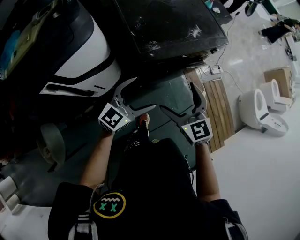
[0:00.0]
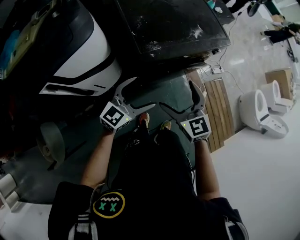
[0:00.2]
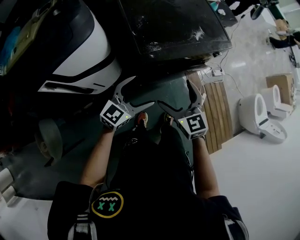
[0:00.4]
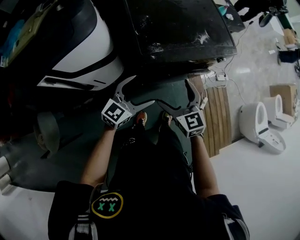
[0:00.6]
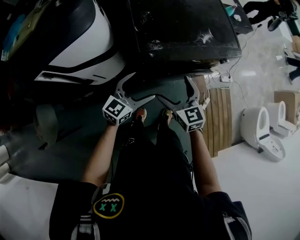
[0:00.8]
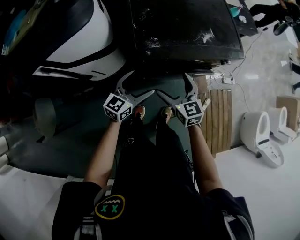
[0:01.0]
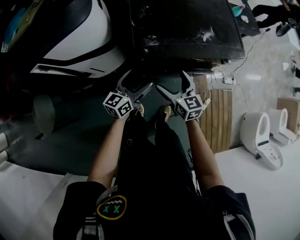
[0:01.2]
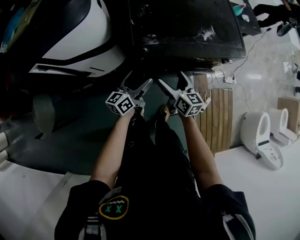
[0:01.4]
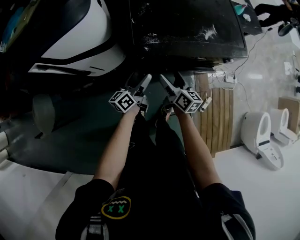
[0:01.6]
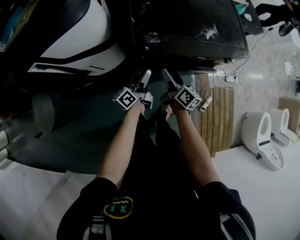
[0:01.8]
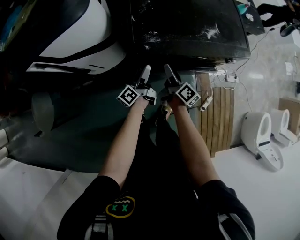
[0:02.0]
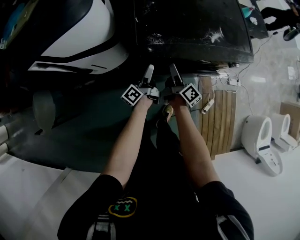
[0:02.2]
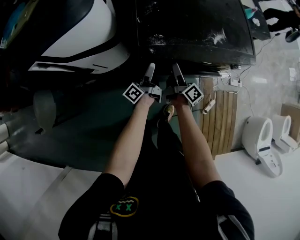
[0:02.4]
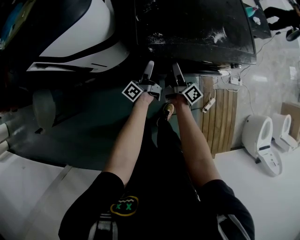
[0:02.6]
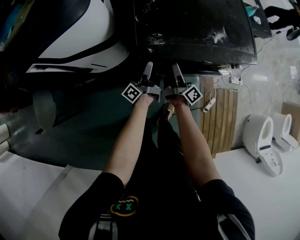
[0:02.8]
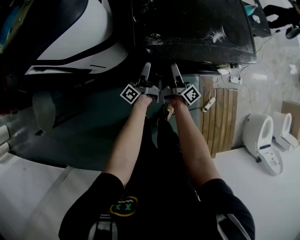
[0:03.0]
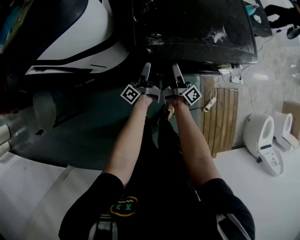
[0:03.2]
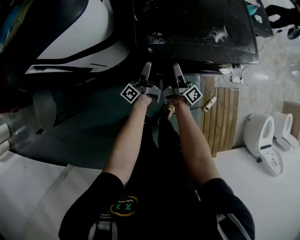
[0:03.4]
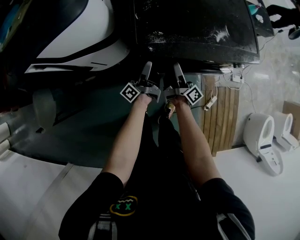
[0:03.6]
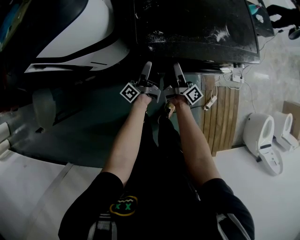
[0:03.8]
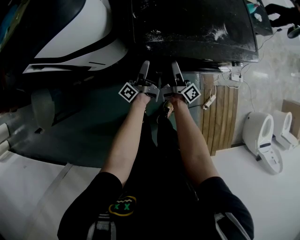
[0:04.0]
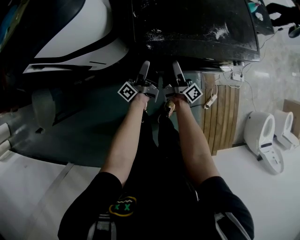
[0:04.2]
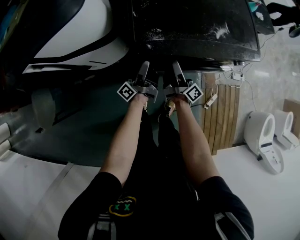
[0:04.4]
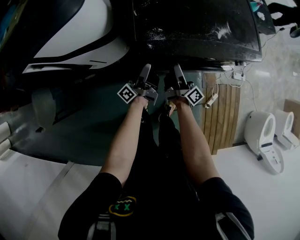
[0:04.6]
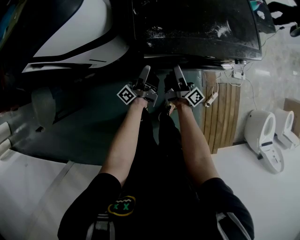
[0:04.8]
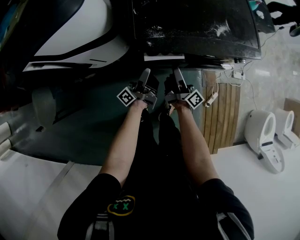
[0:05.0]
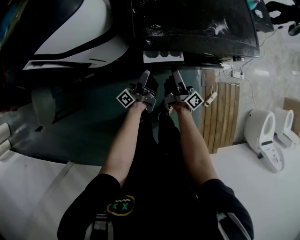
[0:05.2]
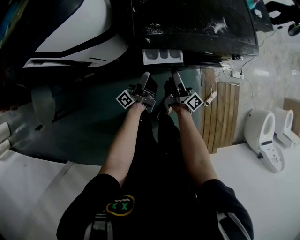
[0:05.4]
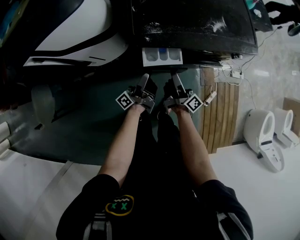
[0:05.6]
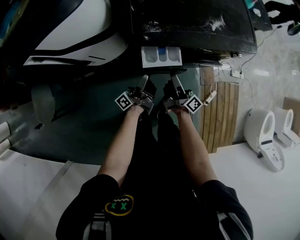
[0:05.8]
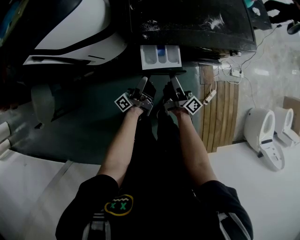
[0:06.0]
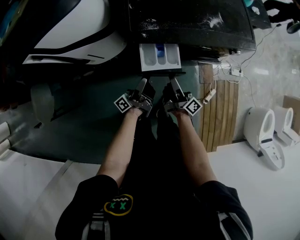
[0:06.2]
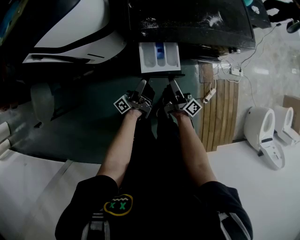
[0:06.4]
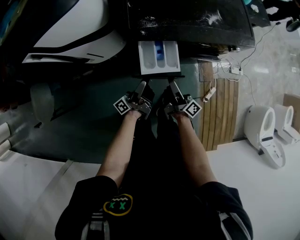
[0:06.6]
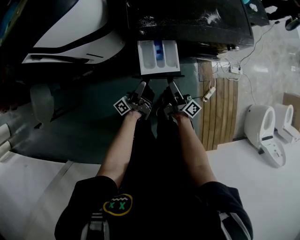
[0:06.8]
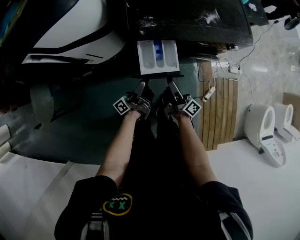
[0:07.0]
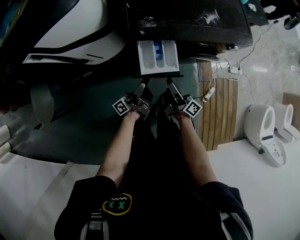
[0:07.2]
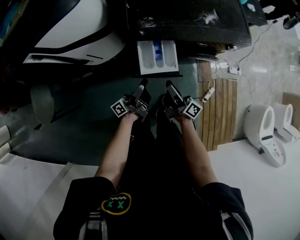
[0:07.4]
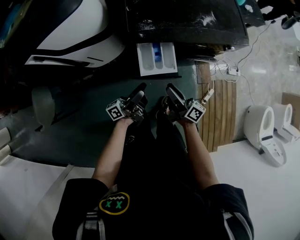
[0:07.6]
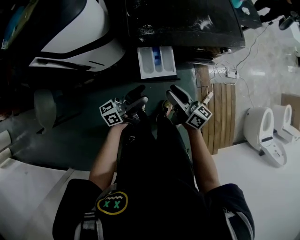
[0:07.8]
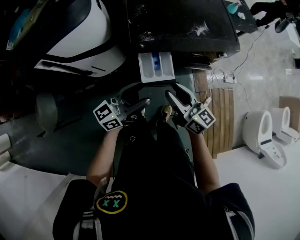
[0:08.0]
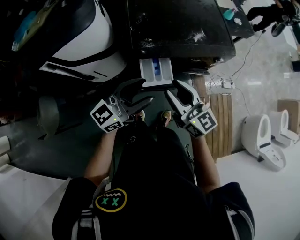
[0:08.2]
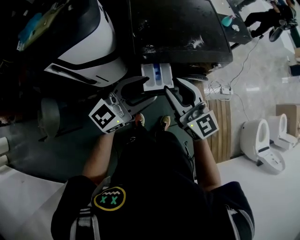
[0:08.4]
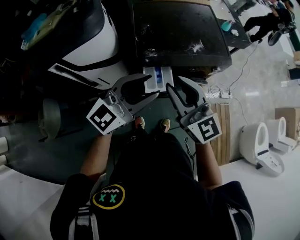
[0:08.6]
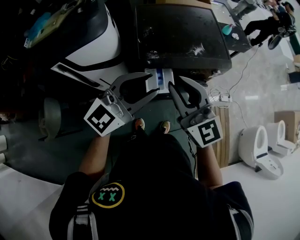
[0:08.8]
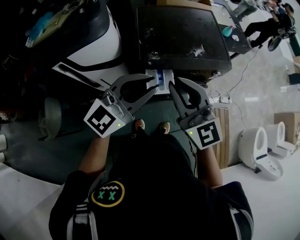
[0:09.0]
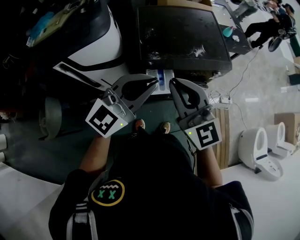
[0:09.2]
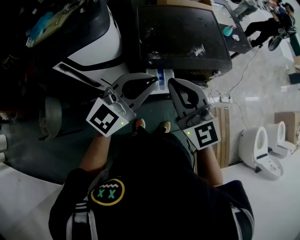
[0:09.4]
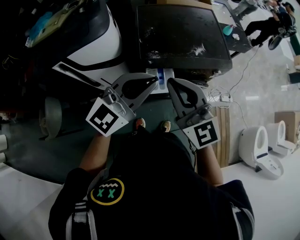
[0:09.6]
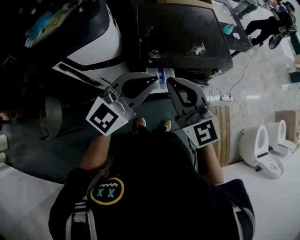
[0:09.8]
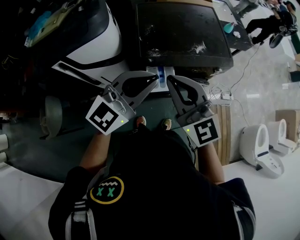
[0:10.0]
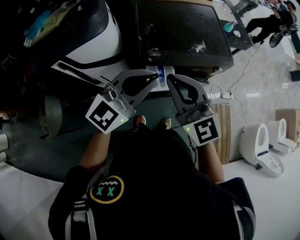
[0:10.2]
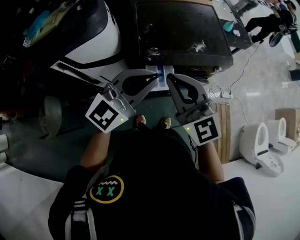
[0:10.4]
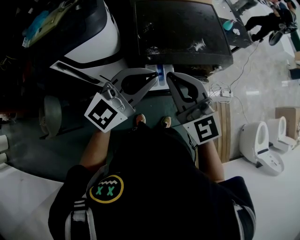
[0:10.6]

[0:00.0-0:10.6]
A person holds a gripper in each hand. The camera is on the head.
0.0 to 1.6 s: The two grippers go approximately 20 cm downward. The right gripper rotates around the line of its fingers by approximately 50 degrees, clockwise from behind; the left gripper swivels approximately 70 degrees.
1.6 to 3.0 s: The two grippers go roughly 5 cm forward. The left gripper swivels roughly 40 degrees. The right gripper swivels roughly 50 degrees.
3.0 to 4.6 s: The grippers move only a little.
4.6 to 6.0 s: The grippers both shift backward by about 10 cm.
6.0 to 7.6 s: The two grippers go some 5 cm backward.
7.6 to 9.0 s: Both grippers travel together upward, approximately 40 cm. The right gripper twists roughly 80 degrees counterclockwise, seen from behind; the left gripper rolls clockwise, seen from behind, by approximately 80 degrees, and closes its fingers.
9.0 to 10.6 s: The grippers move only a little.

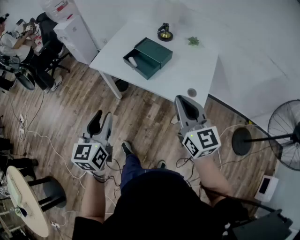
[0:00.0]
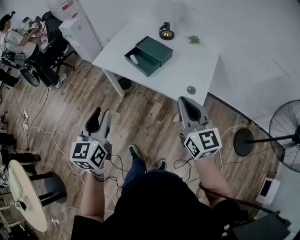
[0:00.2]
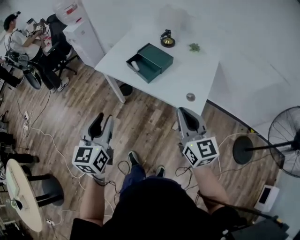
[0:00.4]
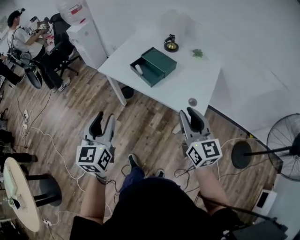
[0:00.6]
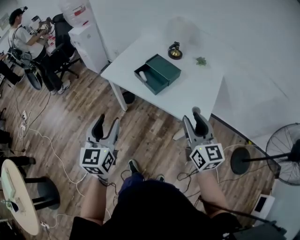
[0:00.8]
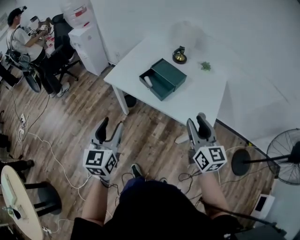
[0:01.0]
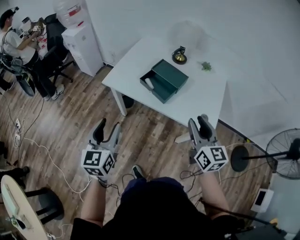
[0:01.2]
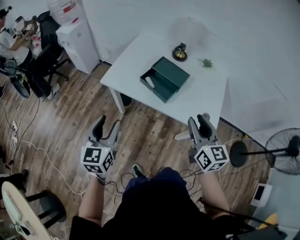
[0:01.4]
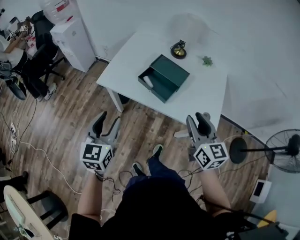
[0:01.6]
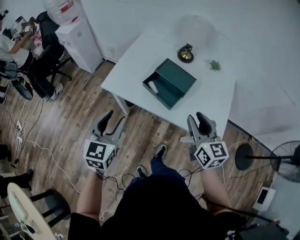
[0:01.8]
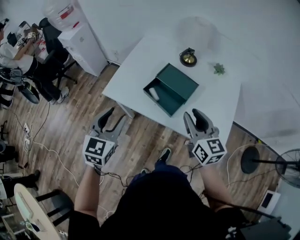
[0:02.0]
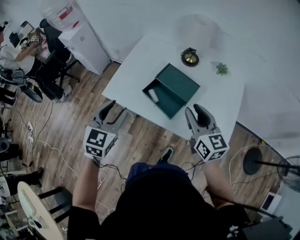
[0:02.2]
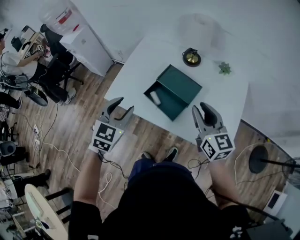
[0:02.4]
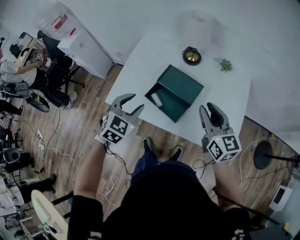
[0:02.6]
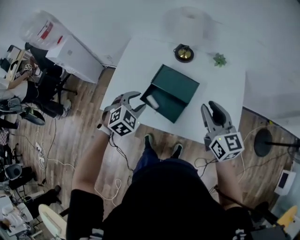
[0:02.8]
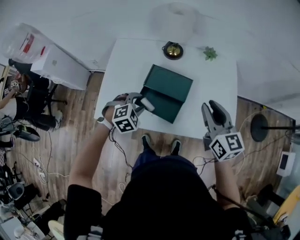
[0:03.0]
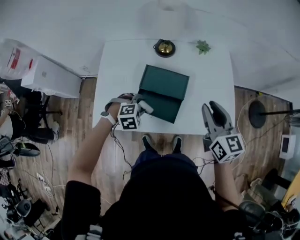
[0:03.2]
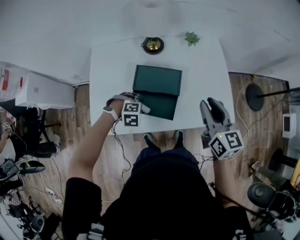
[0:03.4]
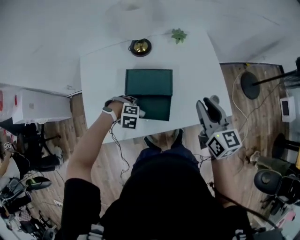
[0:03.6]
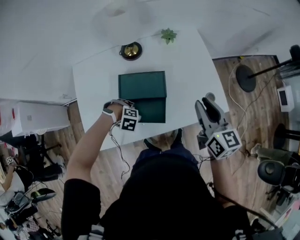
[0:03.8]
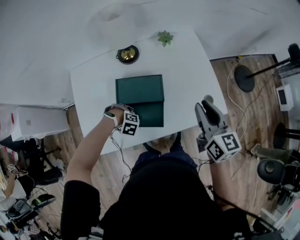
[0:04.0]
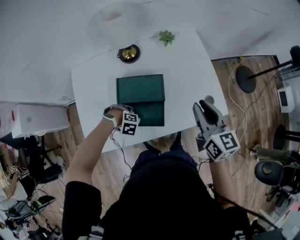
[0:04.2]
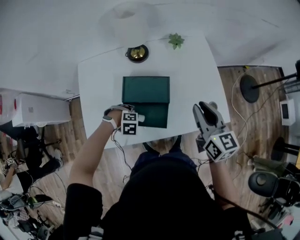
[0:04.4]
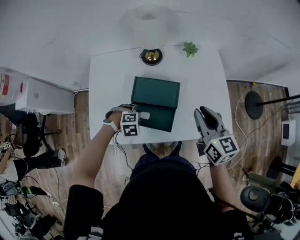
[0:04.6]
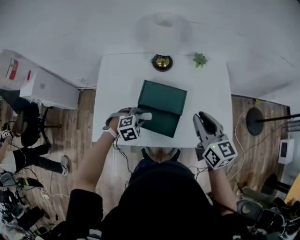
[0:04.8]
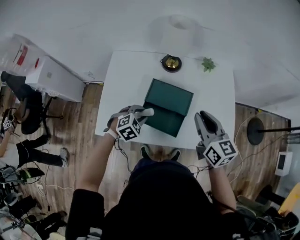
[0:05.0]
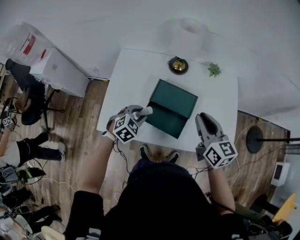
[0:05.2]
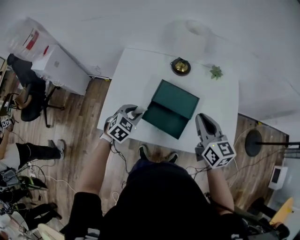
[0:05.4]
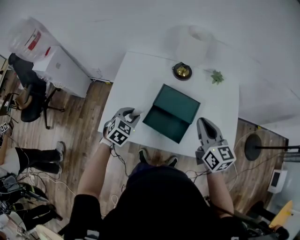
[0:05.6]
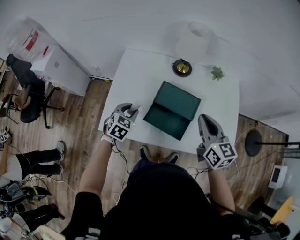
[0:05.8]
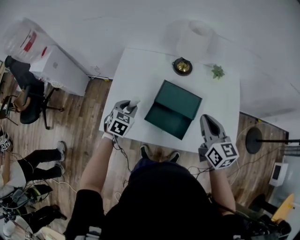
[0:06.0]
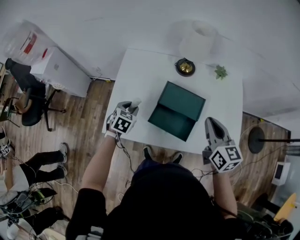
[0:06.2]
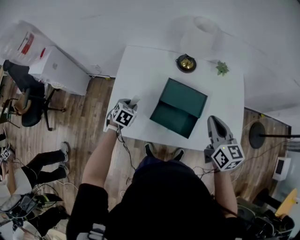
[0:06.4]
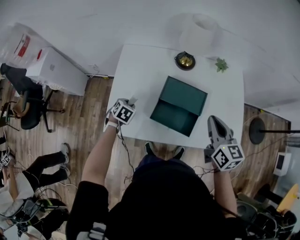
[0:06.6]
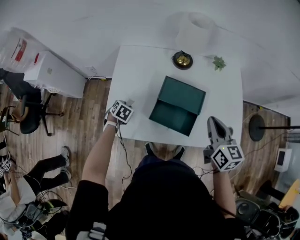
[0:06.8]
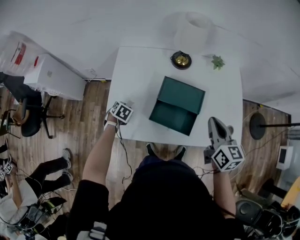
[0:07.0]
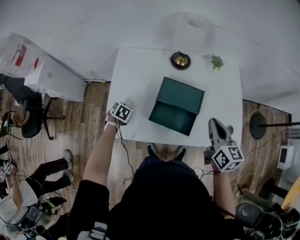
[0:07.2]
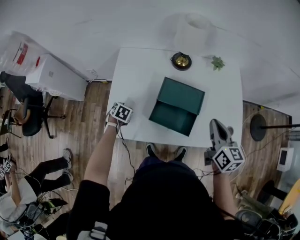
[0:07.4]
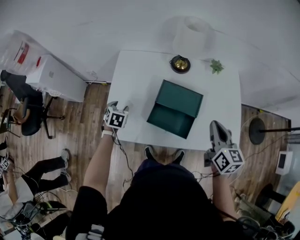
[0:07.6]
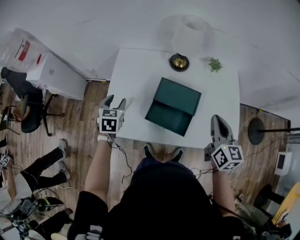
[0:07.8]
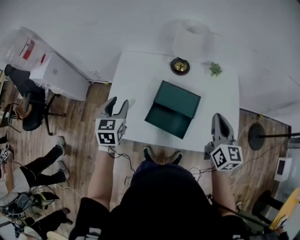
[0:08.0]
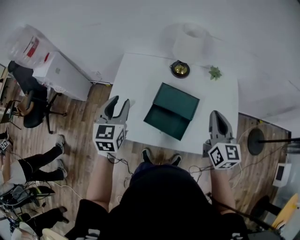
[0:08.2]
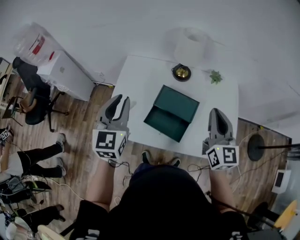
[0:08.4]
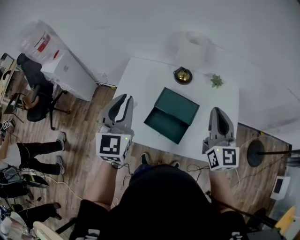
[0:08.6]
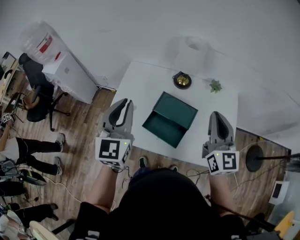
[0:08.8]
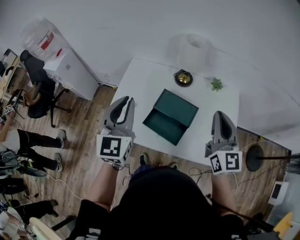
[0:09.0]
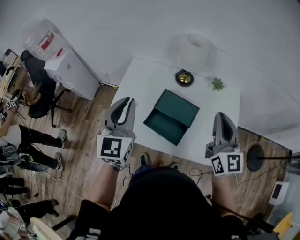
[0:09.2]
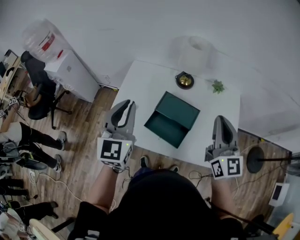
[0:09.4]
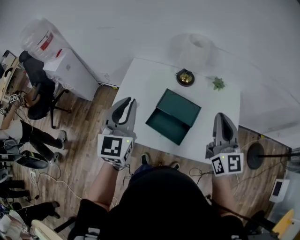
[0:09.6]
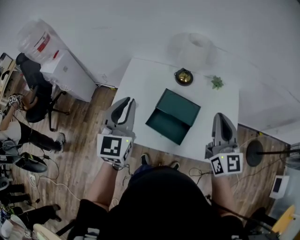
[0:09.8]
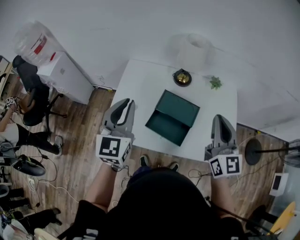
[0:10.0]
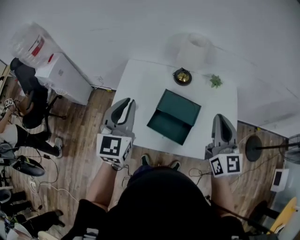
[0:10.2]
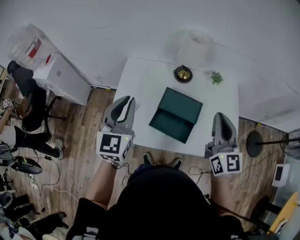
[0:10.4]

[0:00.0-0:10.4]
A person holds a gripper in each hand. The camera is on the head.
0.0 to 1.4 s: The left gripper shifts about 20 cm to the left and forward; the right gripper heads forward and to the left, covering roughly 10 cm, and opens.
1.4 to 3.0 s: The left gripper moves about 40 cm, and tilts its fingers roughly 50 degrees downward, while the right gripper ends up some 30 cm from where it was.
3.0 to 4.4 s: The left gripper travels downward by approximately 15 cm, and swivels about 50 degrees, while the right gripper changes place by some 5 cm.
4.4 to 6.0 s: The left gripper shifts by some 20 cm, and rotates around the line of its fingers by about 70 degrees, counterclockwise from behind, while the right gripper ends up about 15 cm from where it was.
6.0 to 7.4 s: The right gripper shifts by approximately 5 cm. Meanwhile the left gripper shifts approximately 15 cm downward and to the left, and opens its fingers.
7.4 to 9.0 s: The left gripper goes some 40 cm upward, tips its fingers upward by roughly 60 degrees, and closes its fingers. Meanwhile the right gripper is displaced upward by approximately 15 cm, and turns by some 30 degrees.
9.0 to 10.4 s: Both grippers travel together to the left, approximately 5 cm.

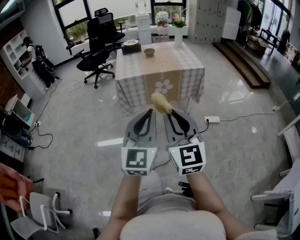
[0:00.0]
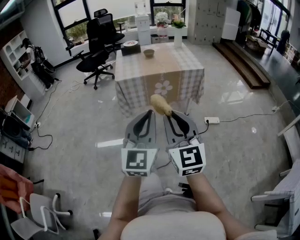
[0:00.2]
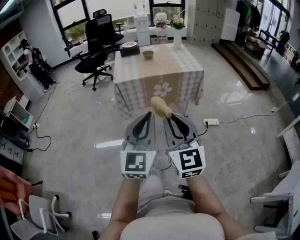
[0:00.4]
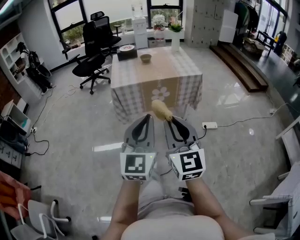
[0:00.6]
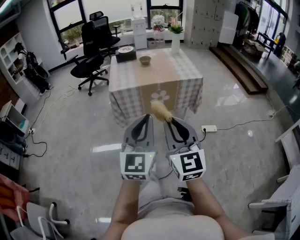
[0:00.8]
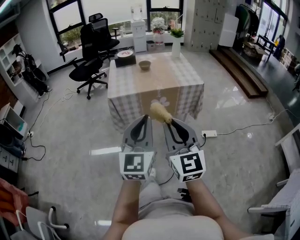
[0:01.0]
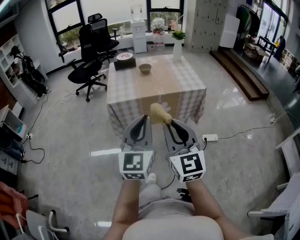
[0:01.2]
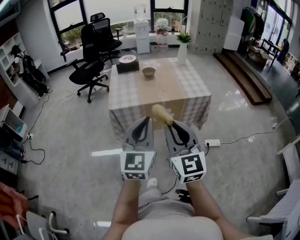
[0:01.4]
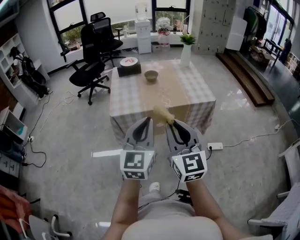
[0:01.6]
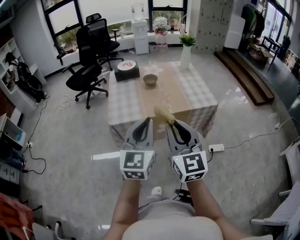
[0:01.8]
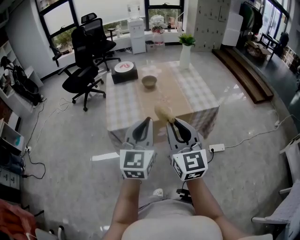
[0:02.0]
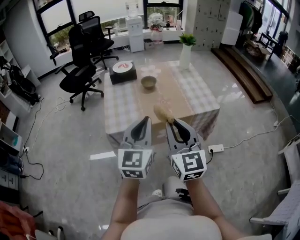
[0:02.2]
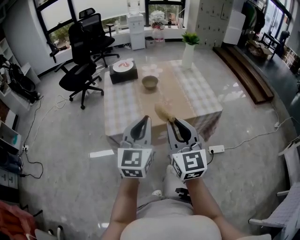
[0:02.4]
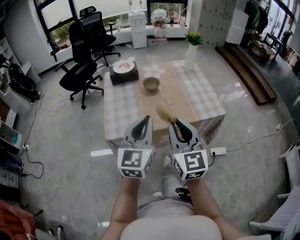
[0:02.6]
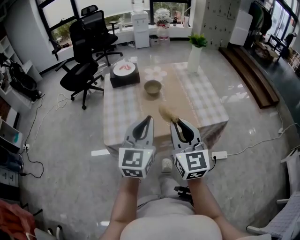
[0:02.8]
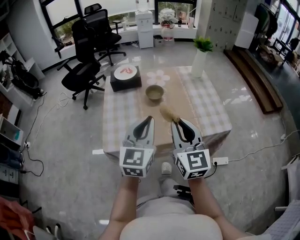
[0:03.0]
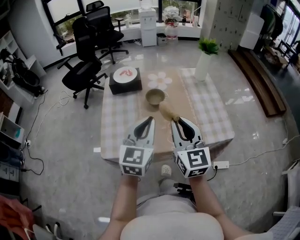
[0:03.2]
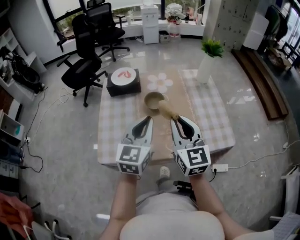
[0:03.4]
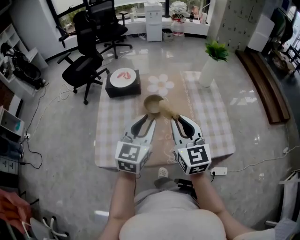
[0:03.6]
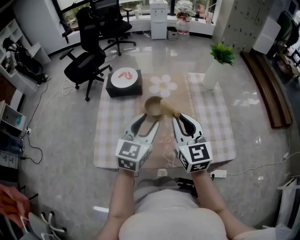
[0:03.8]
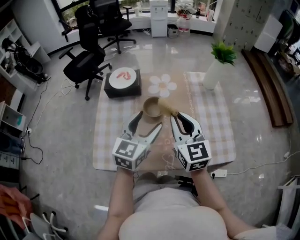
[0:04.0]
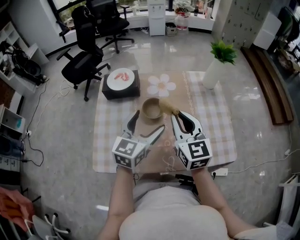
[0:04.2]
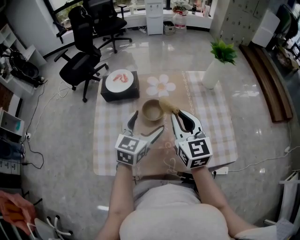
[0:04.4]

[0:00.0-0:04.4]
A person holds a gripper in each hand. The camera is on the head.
0.0 to 1.4 s: The two grippers go approximately 25 cm forward.
1.4 to 3.0 s: The two grippers go roughly 35 cm forward.
3.0 to 4.4 s: The right gripper moves forward, some 25 cm. The left gripper is displaced forward and downward by approximately 25 cm, and opens its fingers.
